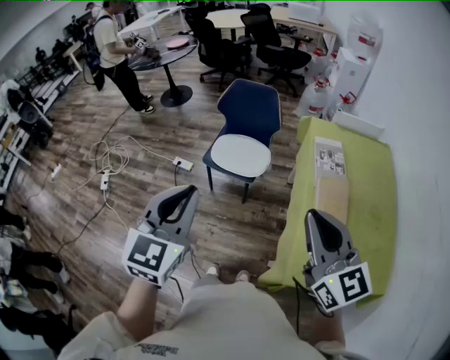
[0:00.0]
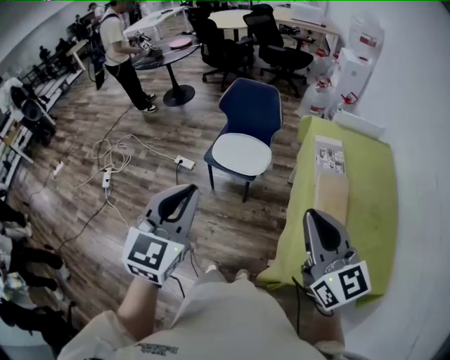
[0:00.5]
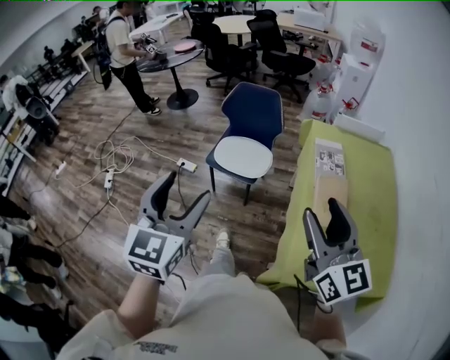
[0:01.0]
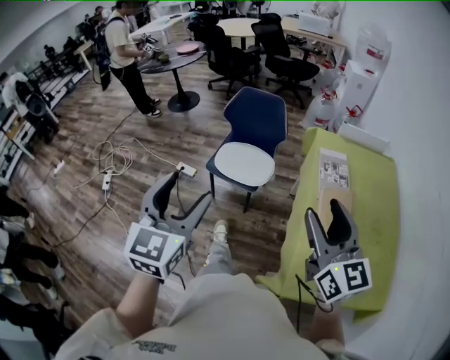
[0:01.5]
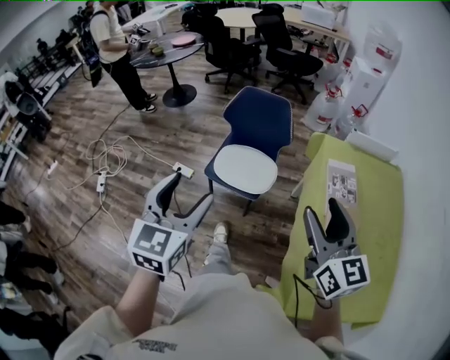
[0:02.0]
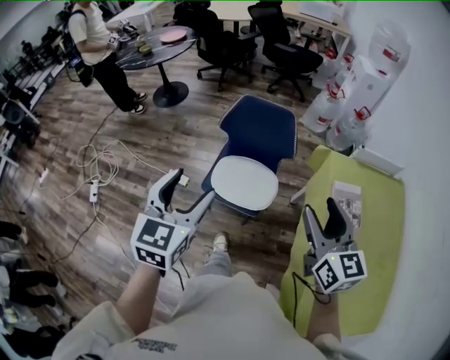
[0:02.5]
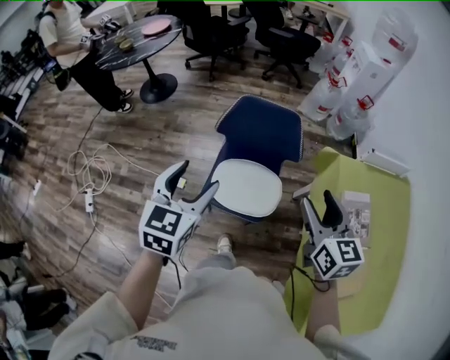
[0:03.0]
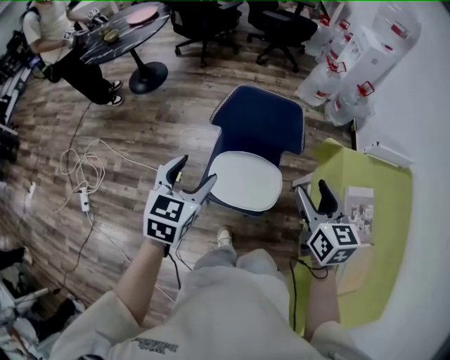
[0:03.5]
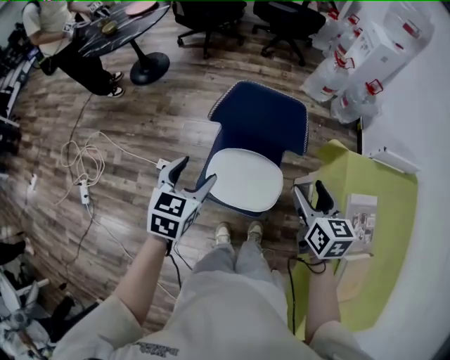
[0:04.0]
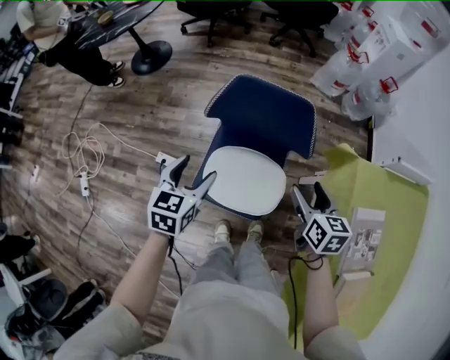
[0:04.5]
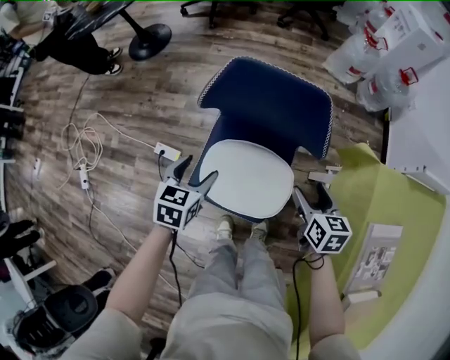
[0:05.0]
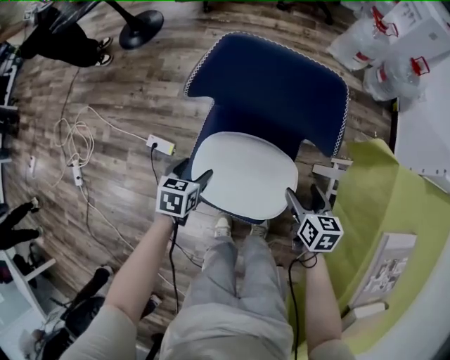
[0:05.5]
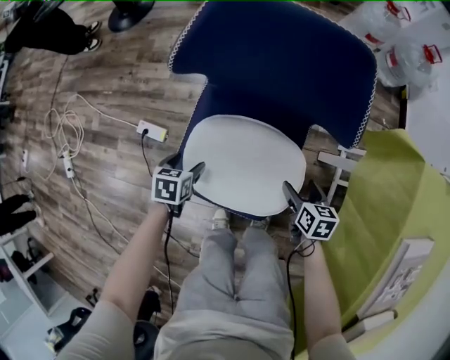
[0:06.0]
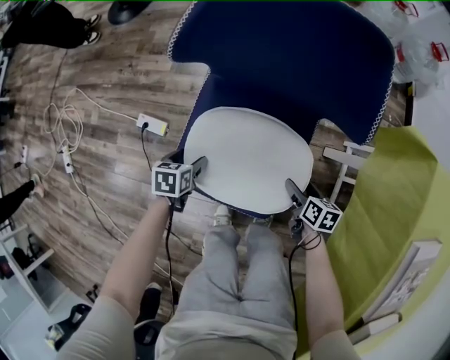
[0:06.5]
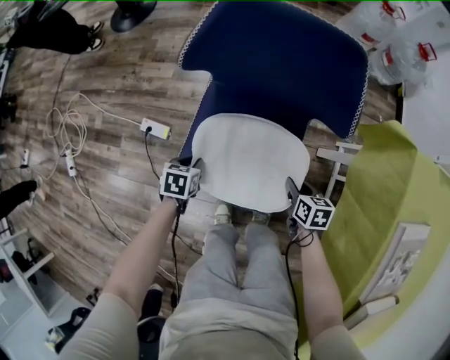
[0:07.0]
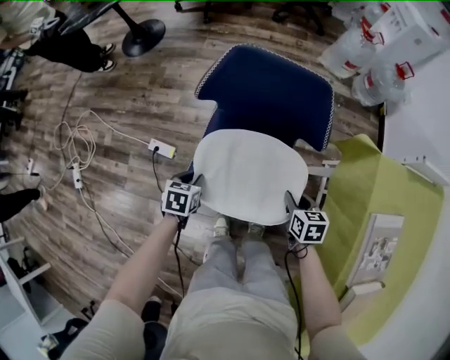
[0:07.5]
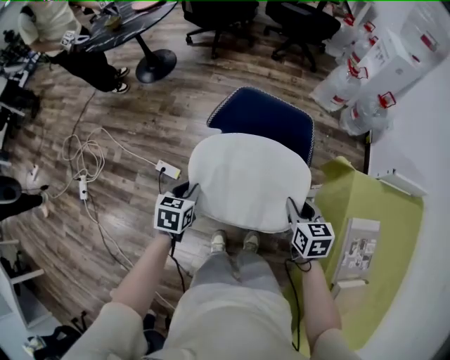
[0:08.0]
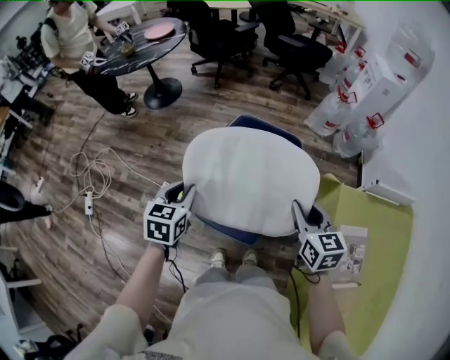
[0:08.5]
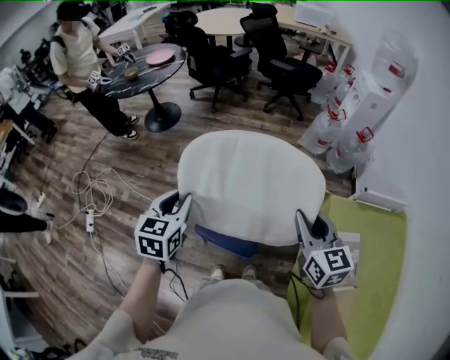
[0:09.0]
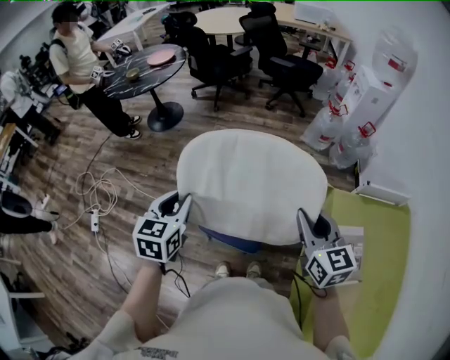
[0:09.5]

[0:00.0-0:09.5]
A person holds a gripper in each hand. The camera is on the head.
0:00.0 to 0:02.0: Both grippers travel together forward, approximately 15 cm. The right gripper opens its fingers; the left gripper opens.
0:02.0 to 0:04.0: Both grippers are carried forward, roughly 50 cm. Both grippers travel together downward, some 20 cm. The left gripper changes its angle by approximately 20 degrees. The right gripper swivels about 30 degrees.
0:04.0 to 0:05.5: The grippers both shift downward by about 40 cm. The left gripper changes its angle by approximately 30 degrees.
0:05.5 to 0:07.5: The two grippers go roughly 5 cm backward. The left gripper reaches some 15 cm downward, then returns, and closes its fingers, while the right gripper travels downward and back again, some 20 cm each way, and closes.
0:07.5 to 0:09.5: Both grippers travel together upward, about 50 cm. The left gripper angles its fingers upward, by some 30 degrees, while the right gripper tilts its fingers about 40 degrees upward.

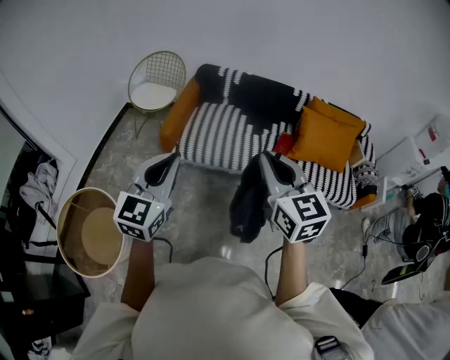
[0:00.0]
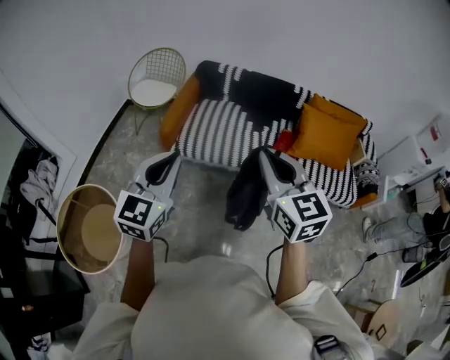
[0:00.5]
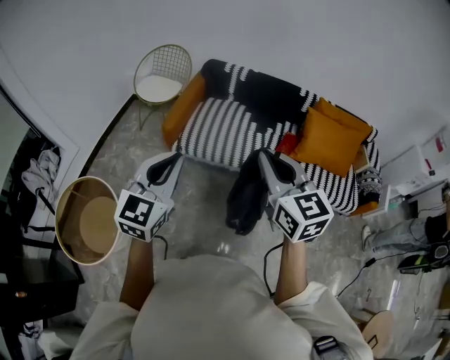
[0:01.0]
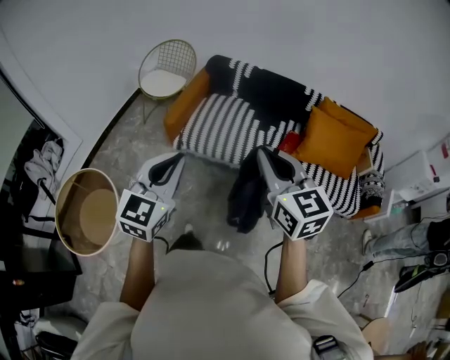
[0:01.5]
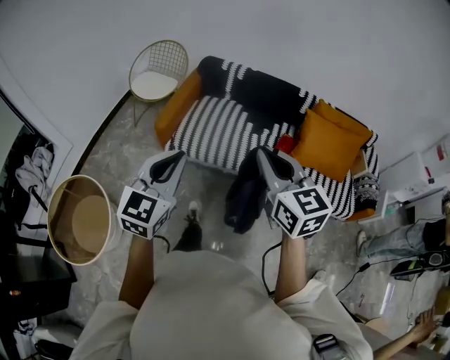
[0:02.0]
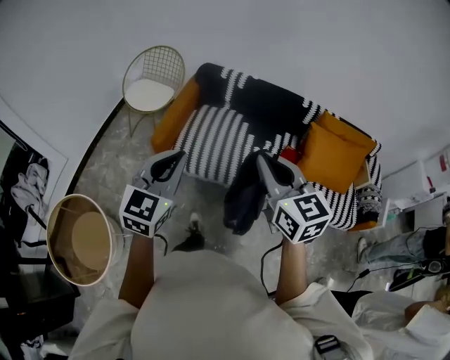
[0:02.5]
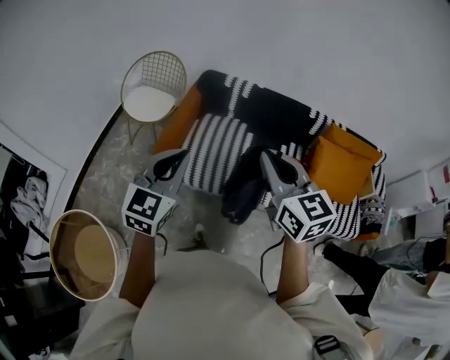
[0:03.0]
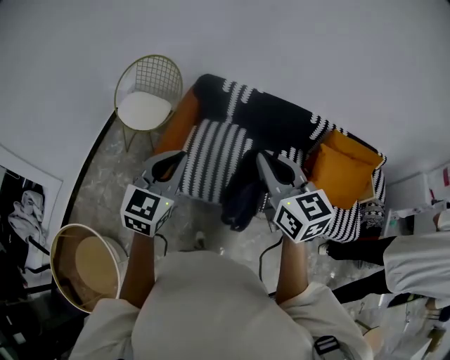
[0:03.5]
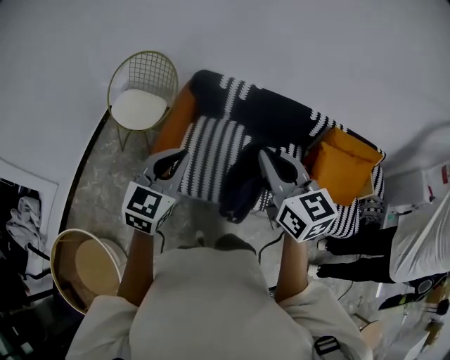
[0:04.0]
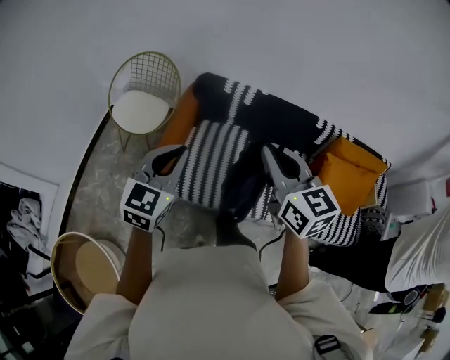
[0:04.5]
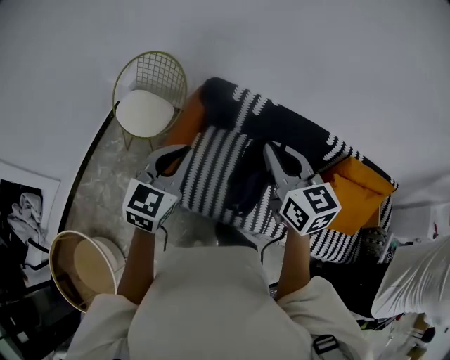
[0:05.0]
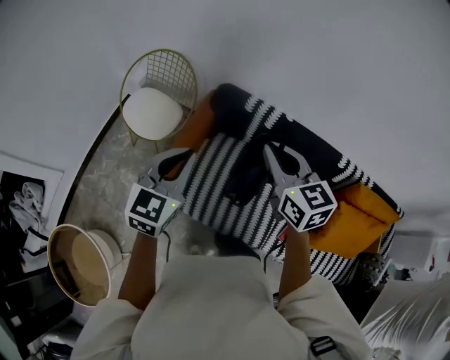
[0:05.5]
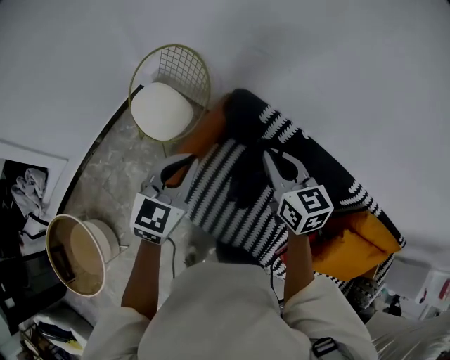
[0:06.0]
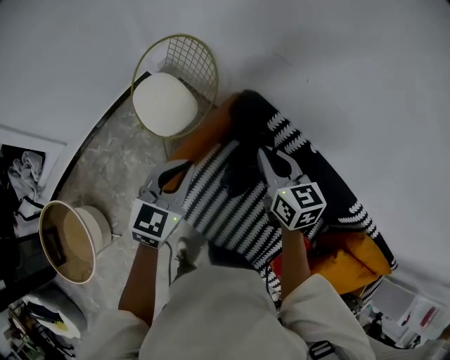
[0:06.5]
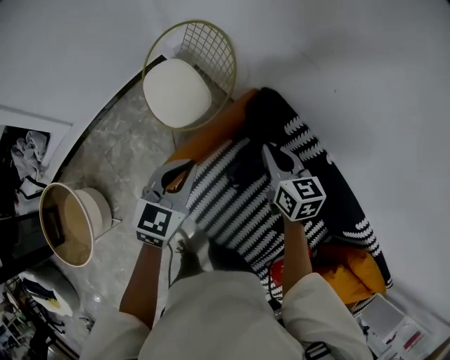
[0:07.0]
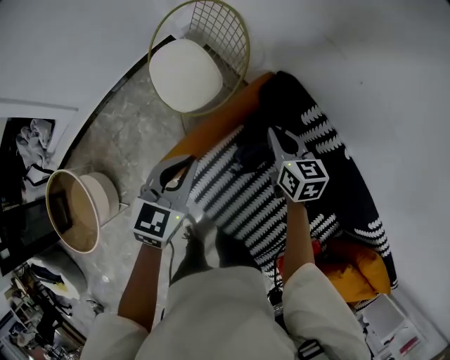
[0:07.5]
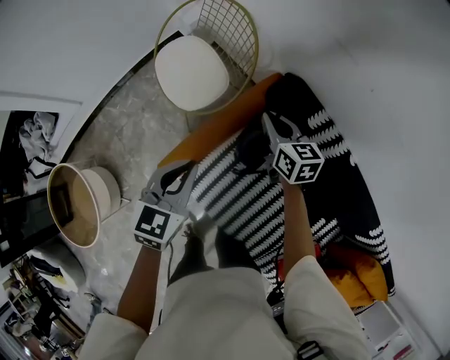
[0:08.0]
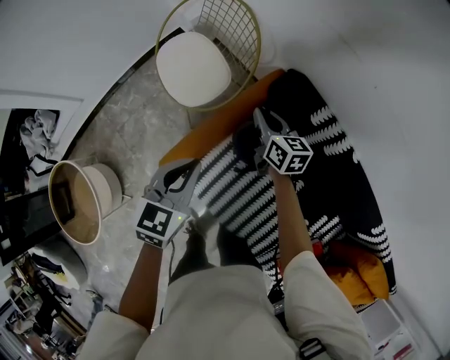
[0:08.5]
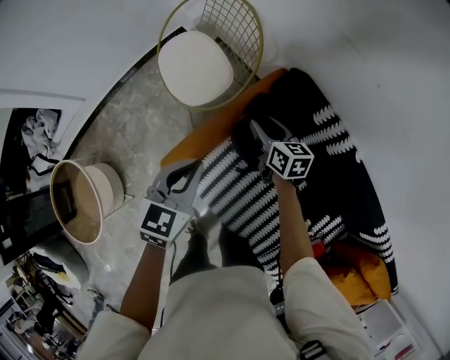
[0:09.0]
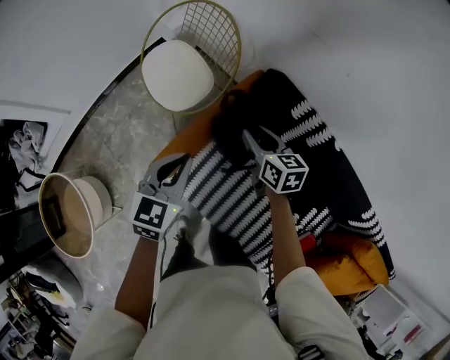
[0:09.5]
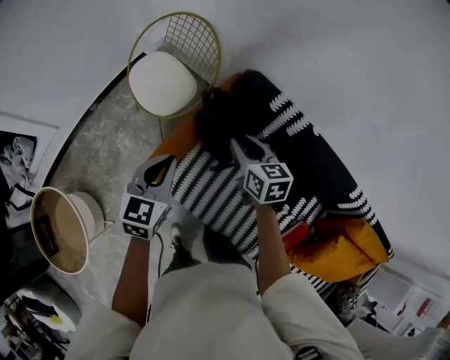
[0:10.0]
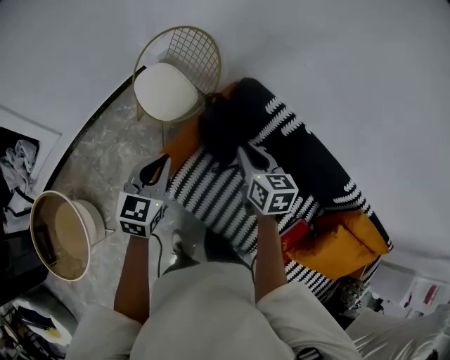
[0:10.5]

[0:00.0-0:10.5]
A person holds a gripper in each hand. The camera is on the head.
0:00.0 to 0:02.0: The left gripper heads to the right and forward, covering roughly 10 cm; the right gripper heads forward and to the right, covering about 10 cm.
0:02.0 to 0:04.0: The two grippers go roughly 40 cm forward.
0:04.0 to 0:06.5: Both grippers travel together forward, approximately 40 cm. The left gripper rotates roughly 30 degrees. Meanwhile the right gripper swivels roughly 30 degrees.
0:06.5 to 0:08.5: The left gripper moves downward, approximately 10 cm. The right gripper heads downward and forward, covering about 25 cm.
0:08.5 to 0:10.5: The right gripper moves backward and upward, approximately 30 cm, and opens, then closes again. The left gripper travels backward, upward and to the left by some 20 cm.

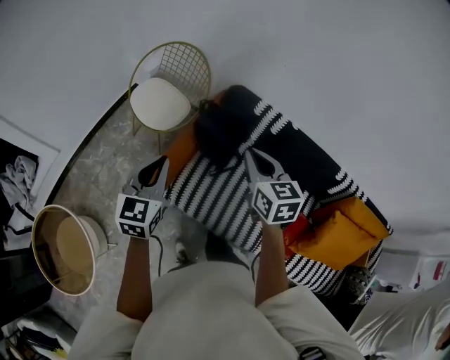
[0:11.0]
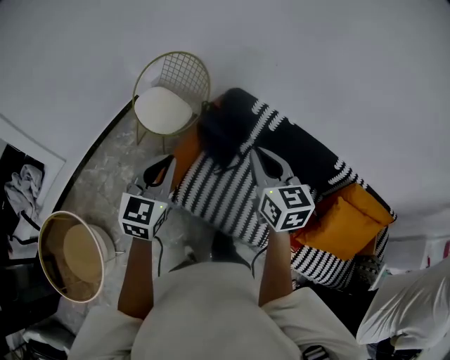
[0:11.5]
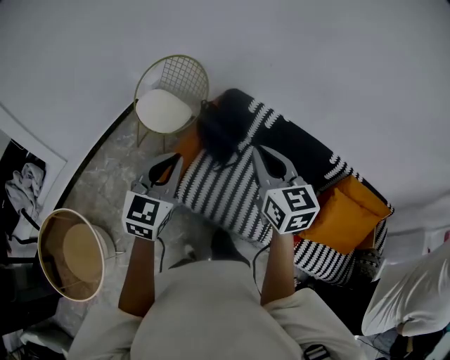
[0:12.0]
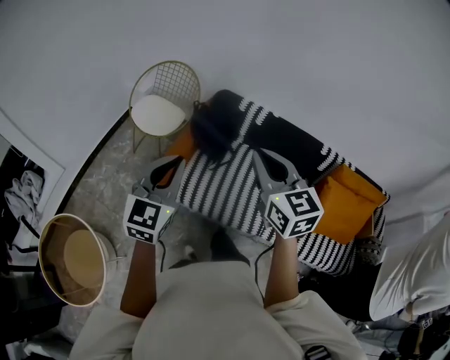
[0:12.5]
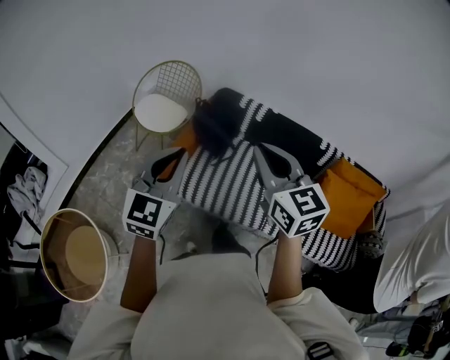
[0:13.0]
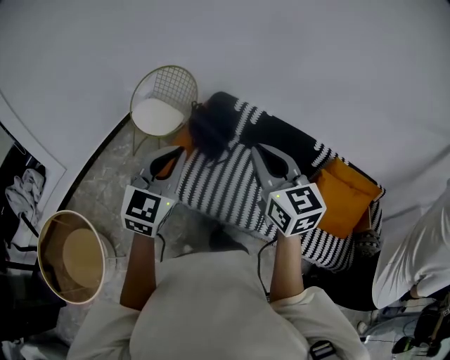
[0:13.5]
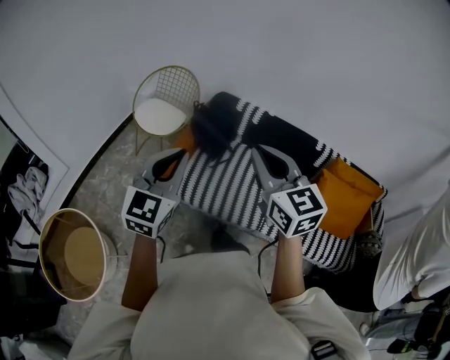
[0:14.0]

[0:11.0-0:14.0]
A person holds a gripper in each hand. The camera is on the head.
0:11.0 to 0:12.5: Both grippers move backward and upward, some 25 cm.
0:12.5 to 0:14.0: The two grippers go approximately 10 cm backward.

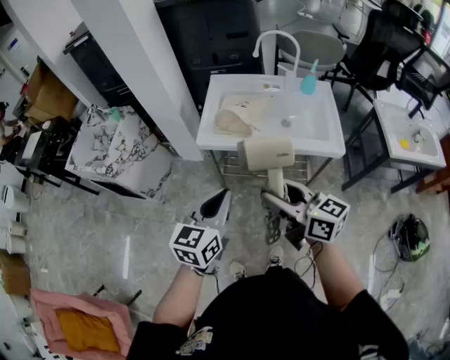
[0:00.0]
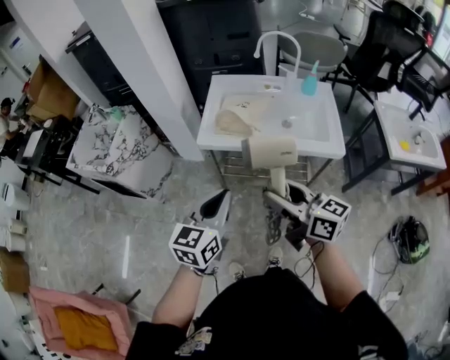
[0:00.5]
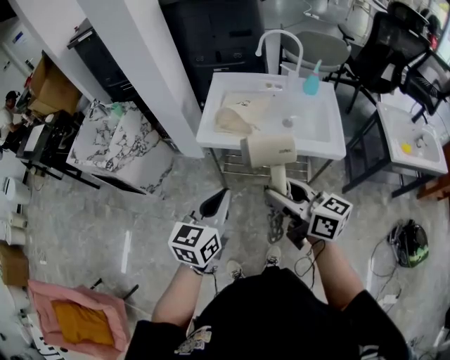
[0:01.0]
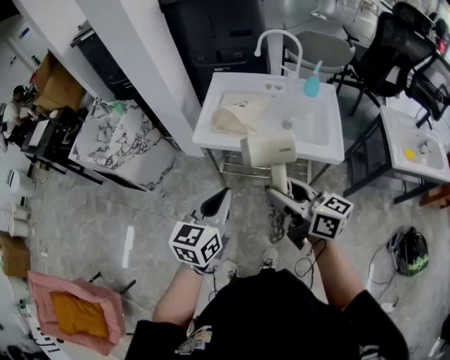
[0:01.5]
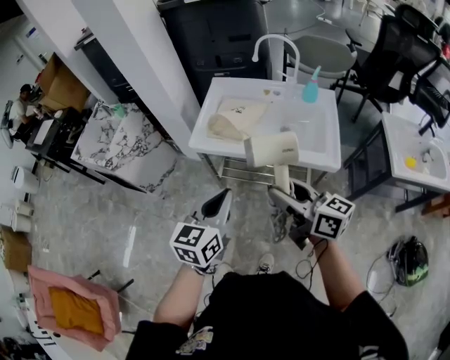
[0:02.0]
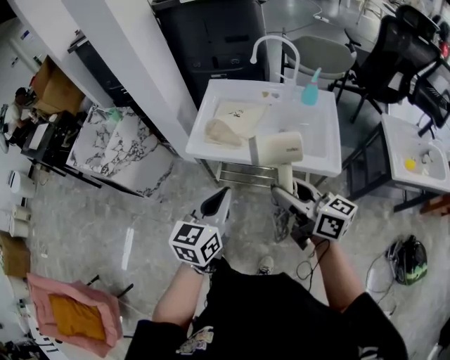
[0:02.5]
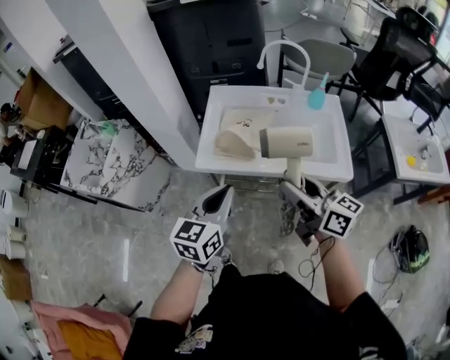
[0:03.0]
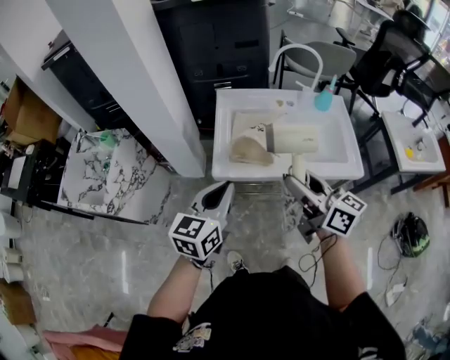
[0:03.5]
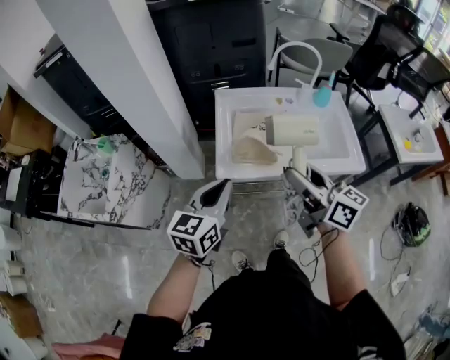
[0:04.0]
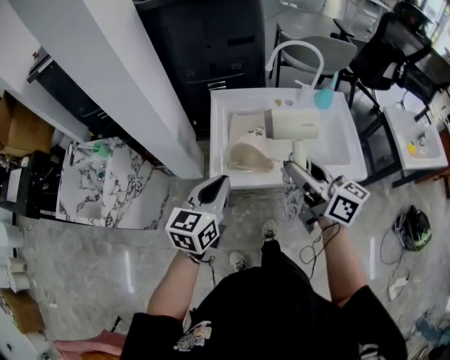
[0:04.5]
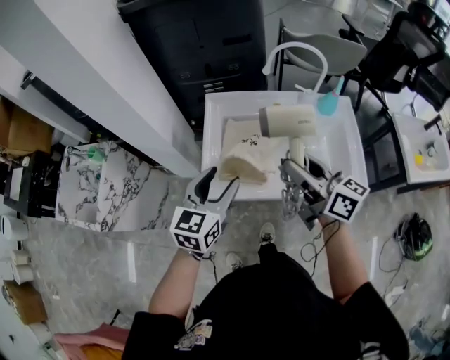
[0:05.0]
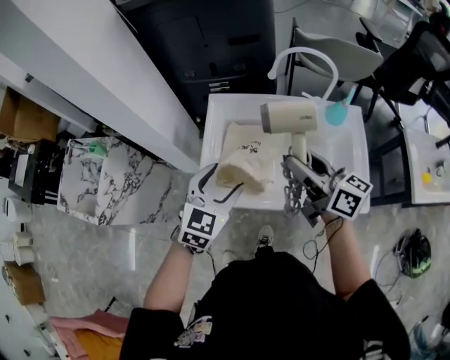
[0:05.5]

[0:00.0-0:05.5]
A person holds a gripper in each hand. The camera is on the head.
0:00.0 to 0:02.0: The grippers both shift to the right by approximately 10 cm.
0:02.0 to 0:03.5: Both grippers move forward and to the left, about 25 cm.
0:03.5 to 0:05.5: Both grippers travel together forward and to the right, about 20 cm. The left gripper swivels about 30 degrees, and opens its fingers.
